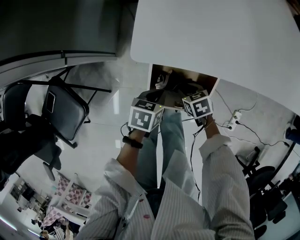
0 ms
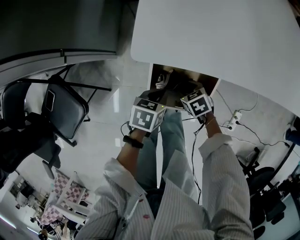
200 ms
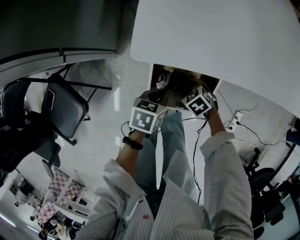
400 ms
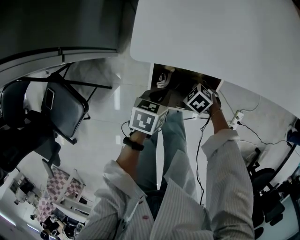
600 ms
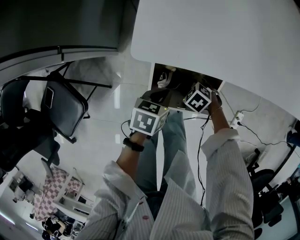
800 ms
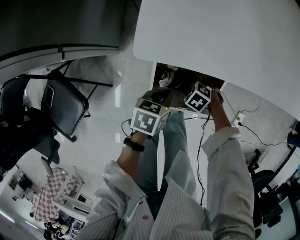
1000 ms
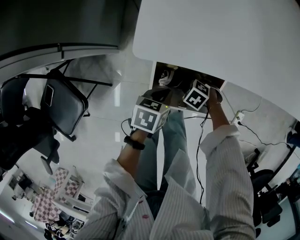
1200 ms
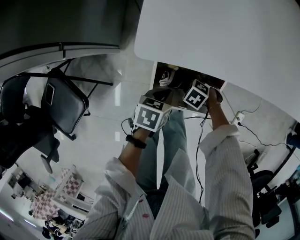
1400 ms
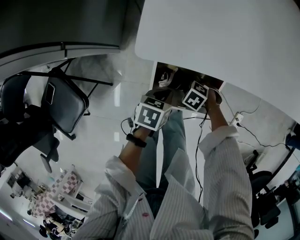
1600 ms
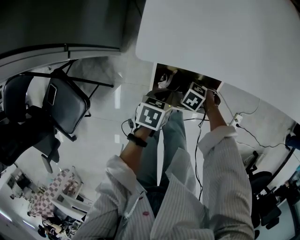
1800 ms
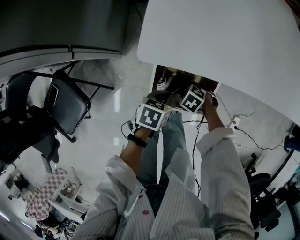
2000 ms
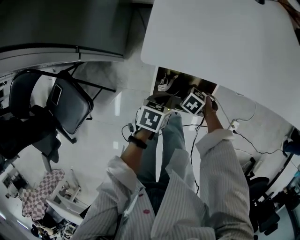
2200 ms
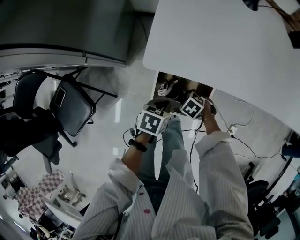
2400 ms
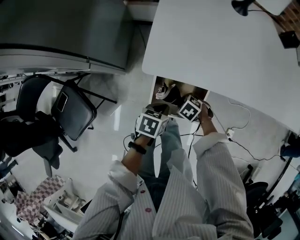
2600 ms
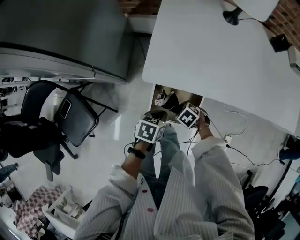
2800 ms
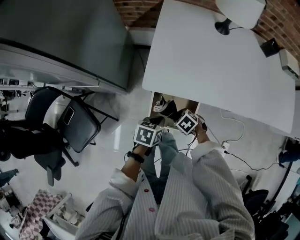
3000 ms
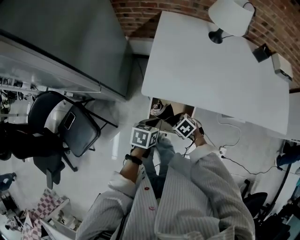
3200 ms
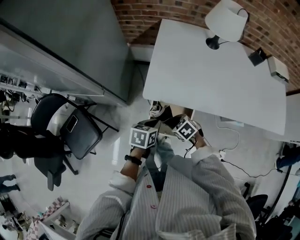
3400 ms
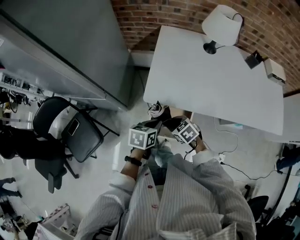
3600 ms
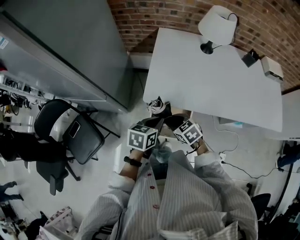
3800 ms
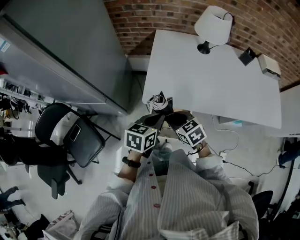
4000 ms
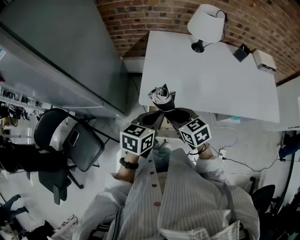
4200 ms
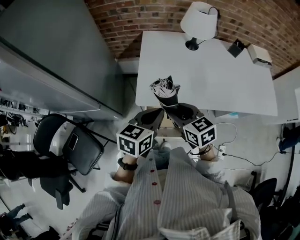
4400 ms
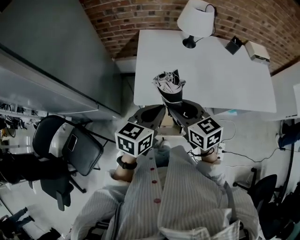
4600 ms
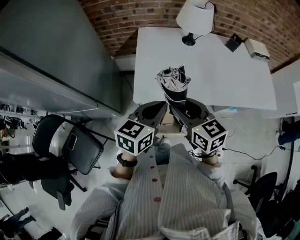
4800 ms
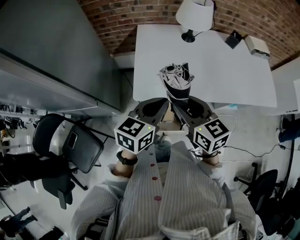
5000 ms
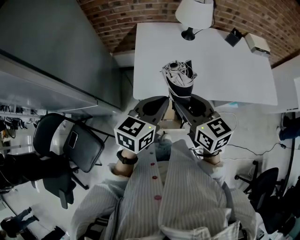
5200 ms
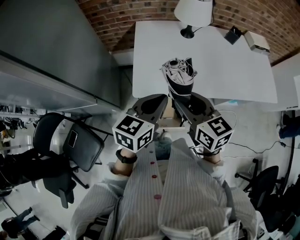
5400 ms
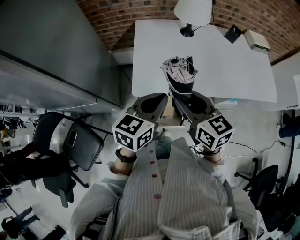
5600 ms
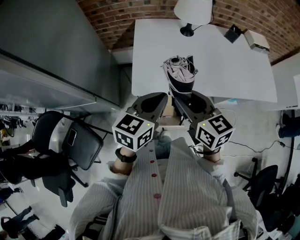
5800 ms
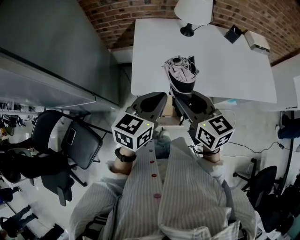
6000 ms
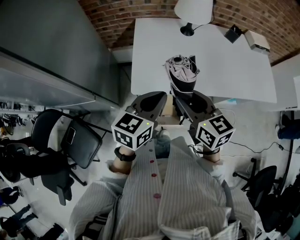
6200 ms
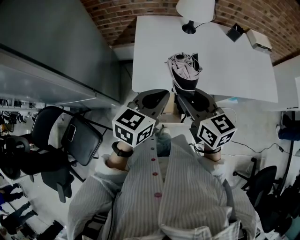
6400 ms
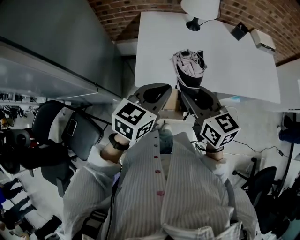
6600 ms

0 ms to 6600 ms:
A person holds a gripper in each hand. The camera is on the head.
0 ms to 1600 ms: The right gripper is displaced downward by approximately 5 cm, and rotates roughly 50 degrees.
1600 ms to 3200 ms: Both grippers travel together upward, about 20 cm. The right gripper turns by approximately 20 degrees.
3200 ms to 5000 ms: Both grippers travel together upward, roughly 30 cm. The left gripper angles its fingers upward, by approximately 30 degrees. Meanwhile the right gripper angles its fingers upward, by roughly 50 degrees.
5000 ms to 6600 ms: The grippers make only small movements.

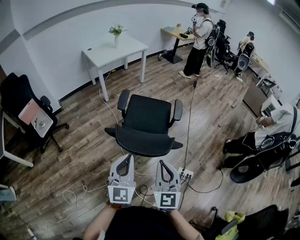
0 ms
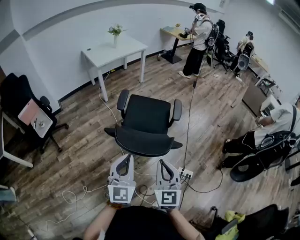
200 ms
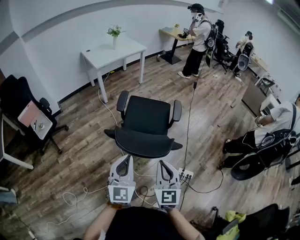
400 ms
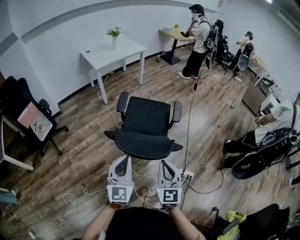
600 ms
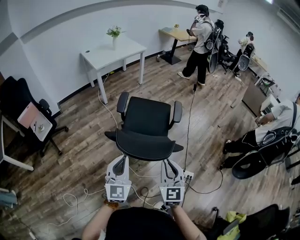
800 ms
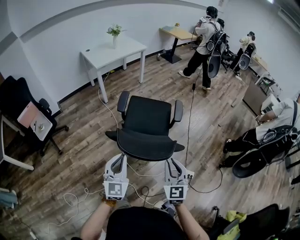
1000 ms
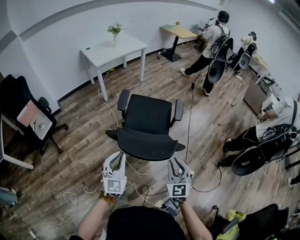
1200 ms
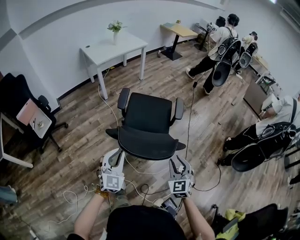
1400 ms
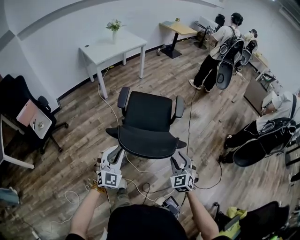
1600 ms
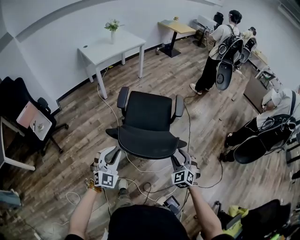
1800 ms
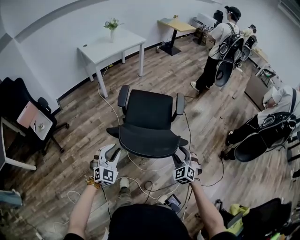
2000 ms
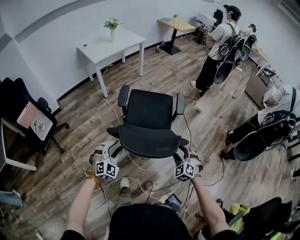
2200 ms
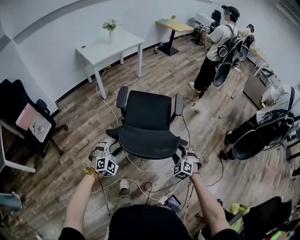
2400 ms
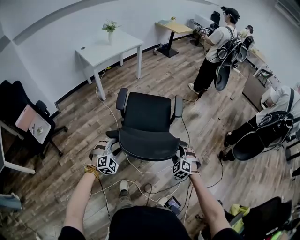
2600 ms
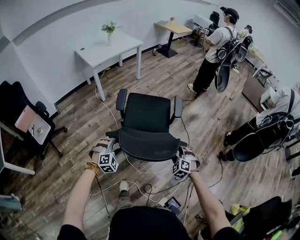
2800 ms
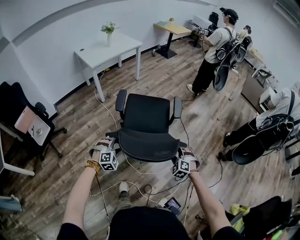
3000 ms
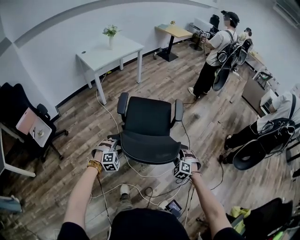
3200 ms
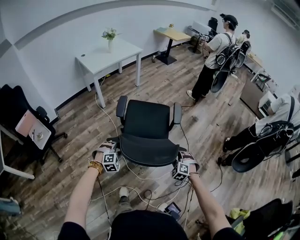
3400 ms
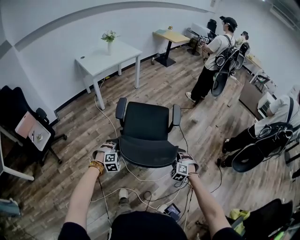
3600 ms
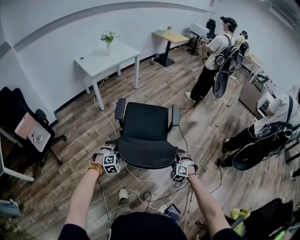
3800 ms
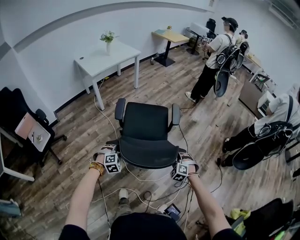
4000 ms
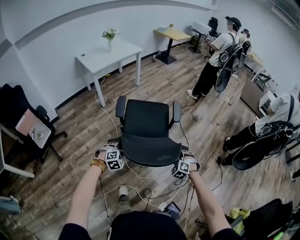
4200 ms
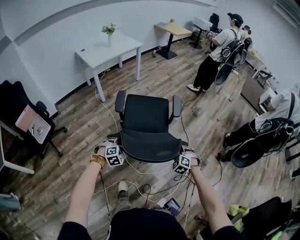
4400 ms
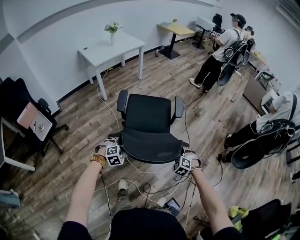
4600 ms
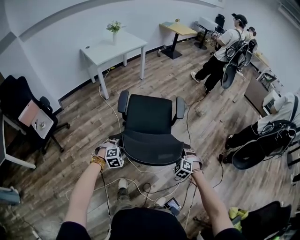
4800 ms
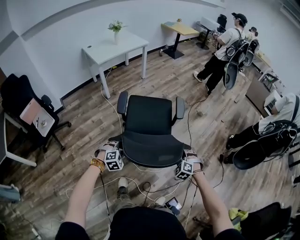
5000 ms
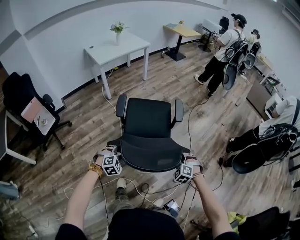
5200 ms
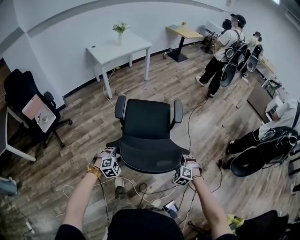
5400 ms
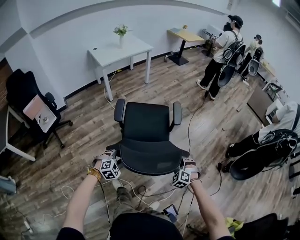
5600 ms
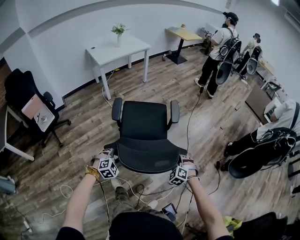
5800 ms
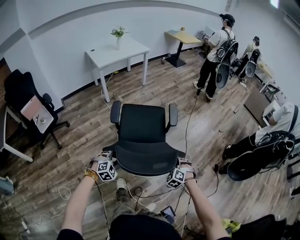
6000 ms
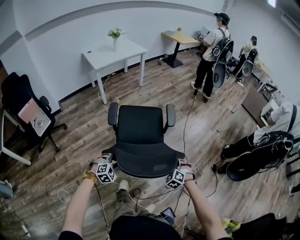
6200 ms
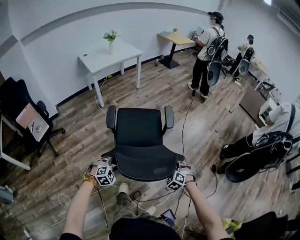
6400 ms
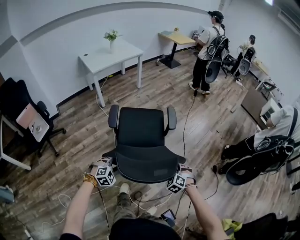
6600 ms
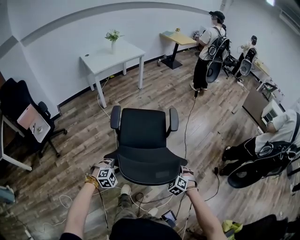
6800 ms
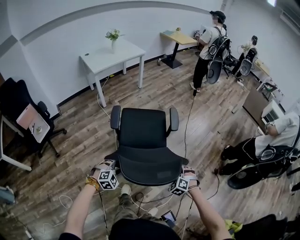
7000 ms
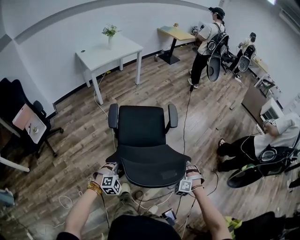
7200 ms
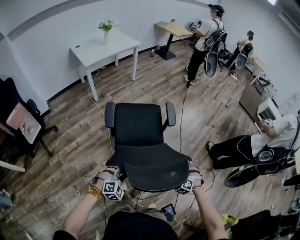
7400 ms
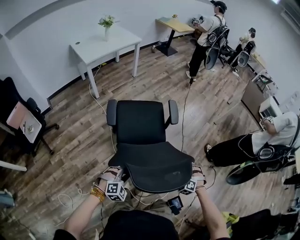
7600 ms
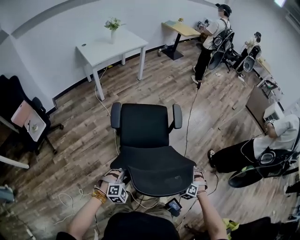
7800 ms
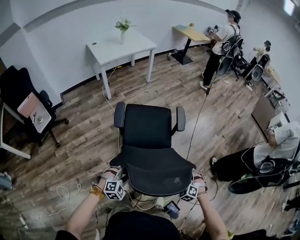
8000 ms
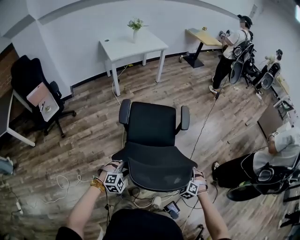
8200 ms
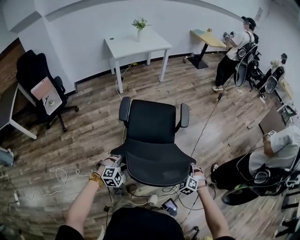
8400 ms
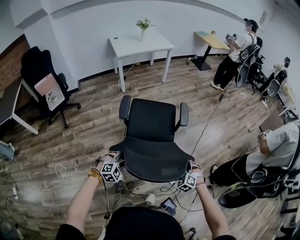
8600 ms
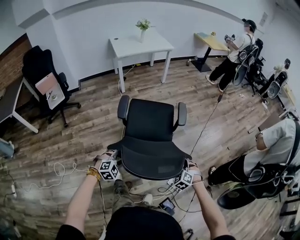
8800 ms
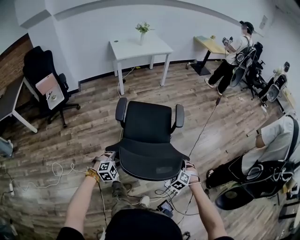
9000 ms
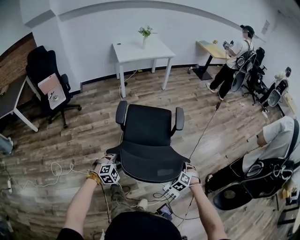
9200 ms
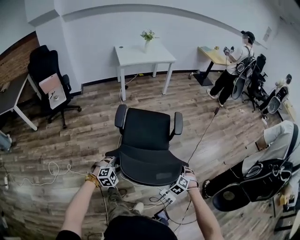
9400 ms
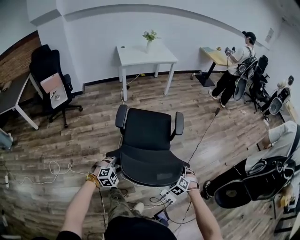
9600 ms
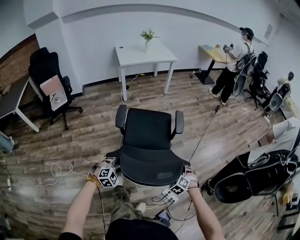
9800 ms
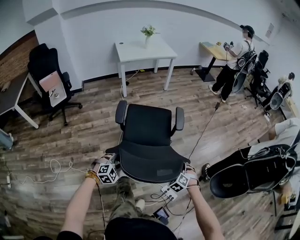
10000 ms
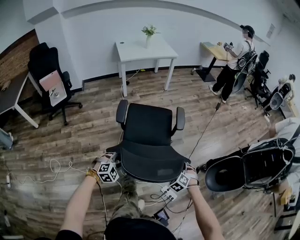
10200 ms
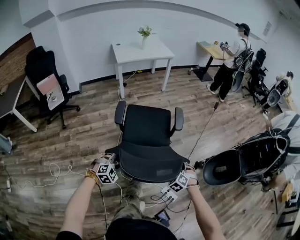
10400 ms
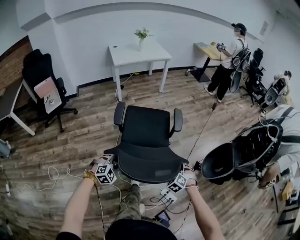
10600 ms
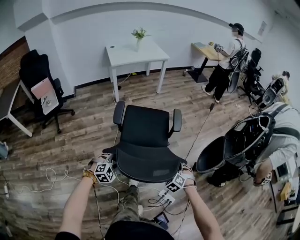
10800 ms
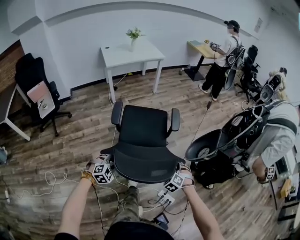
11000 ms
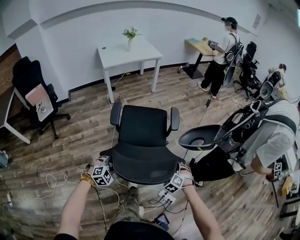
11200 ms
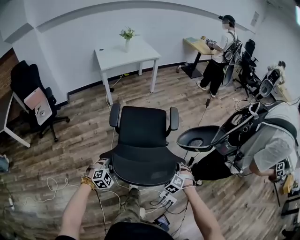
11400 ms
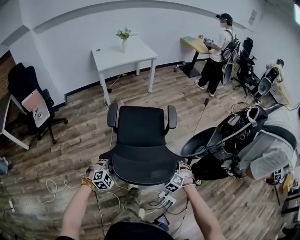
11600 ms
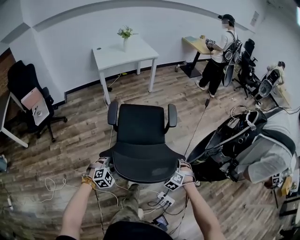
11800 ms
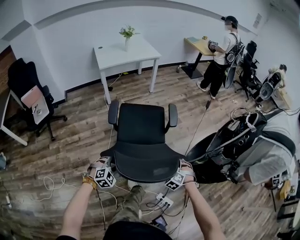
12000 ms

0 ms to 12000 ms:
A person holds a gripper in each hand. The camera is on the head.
0 ms to 1600 ms: The right gripper moves downward, to the right and forward, approximately 15 cm, swivels approximately 30 degrees, and opens; the left gripper moves downward, to the left and forward, some 15 cm, and turns by approximately 30 degrees.
1600 ms to 3000 ms: Both grippers move downward and forward, about 15 cm. The left gripper angles its fingers downward, by approximately 40 degrees, and opens up, while the right gripper changes its angle by about 30 degrees.
3000 ms to 4400 ms: The left gripper closes its fingers.
4400 ms to 6000 ms: The right gripper travels to the right by some 5 cm, while the left gripper goes roughly 10 cm backward and to the right.
6000 ms to 7600 ms: The right gripper goes approximately 5 cm forward.
7600 ms to 9000 ms: The grippers both shift to the right by roughly 10 cm. The left gripper rotates approximately 20 degrees.
9000 ms to 10400 ms: The grippers make only small movements.
10400 ms to 12000 ms: Both grippers move forward, about 15 cm.

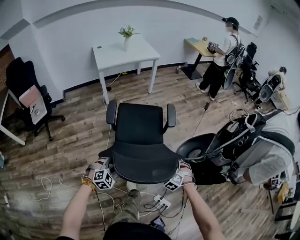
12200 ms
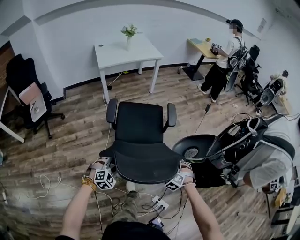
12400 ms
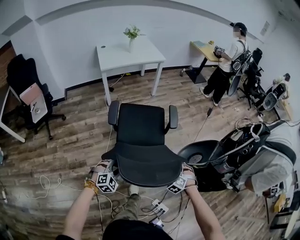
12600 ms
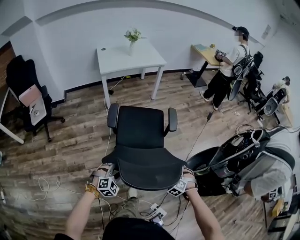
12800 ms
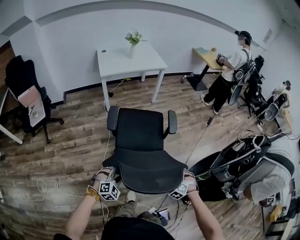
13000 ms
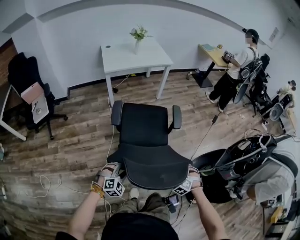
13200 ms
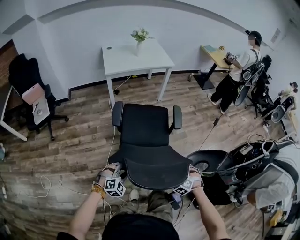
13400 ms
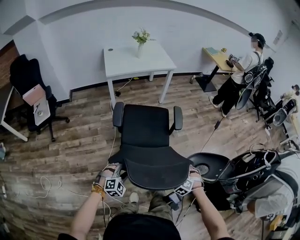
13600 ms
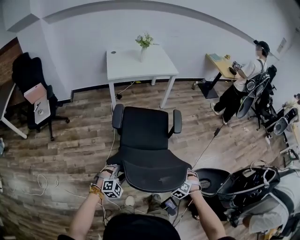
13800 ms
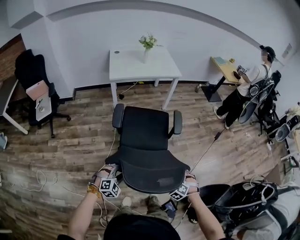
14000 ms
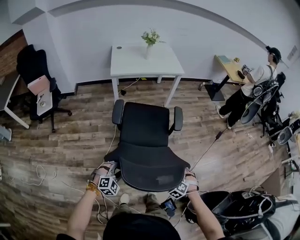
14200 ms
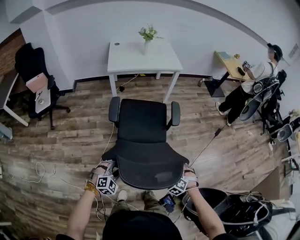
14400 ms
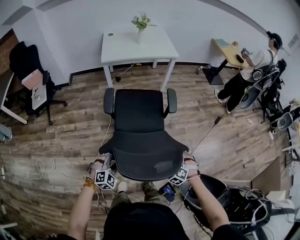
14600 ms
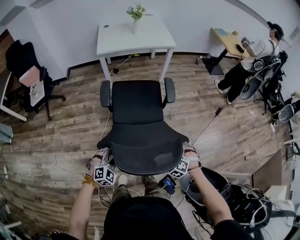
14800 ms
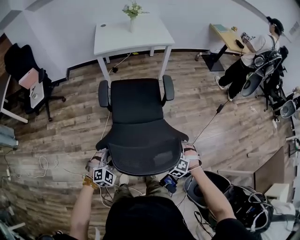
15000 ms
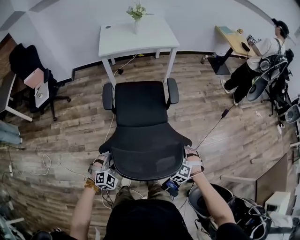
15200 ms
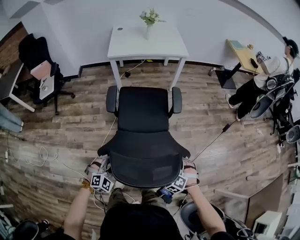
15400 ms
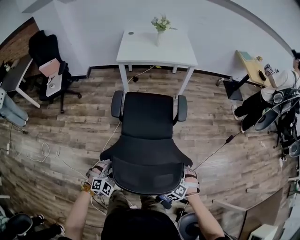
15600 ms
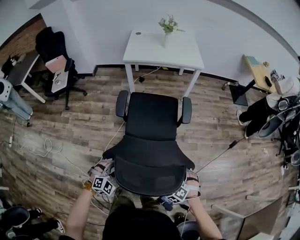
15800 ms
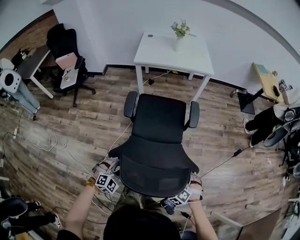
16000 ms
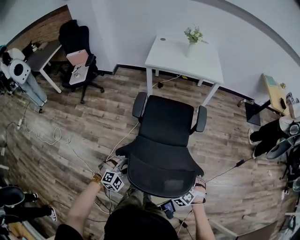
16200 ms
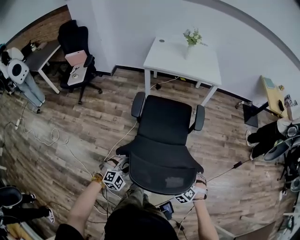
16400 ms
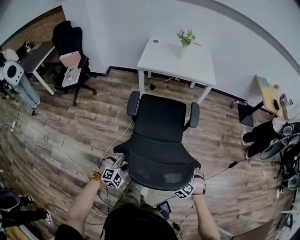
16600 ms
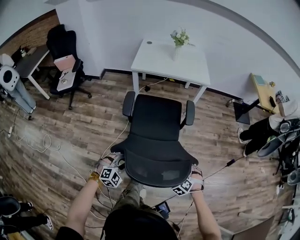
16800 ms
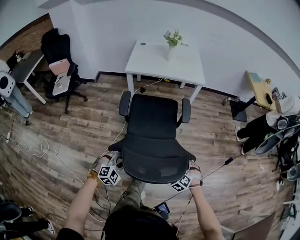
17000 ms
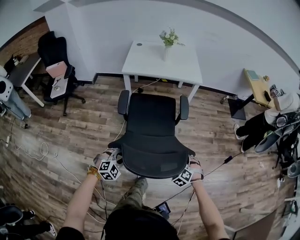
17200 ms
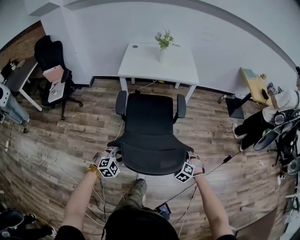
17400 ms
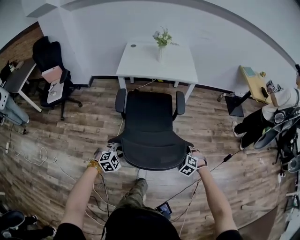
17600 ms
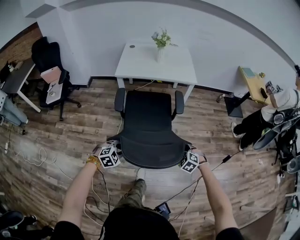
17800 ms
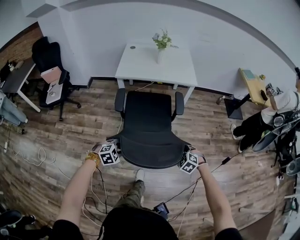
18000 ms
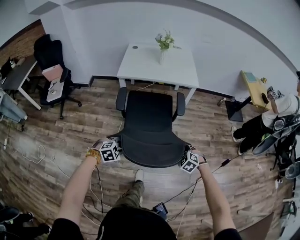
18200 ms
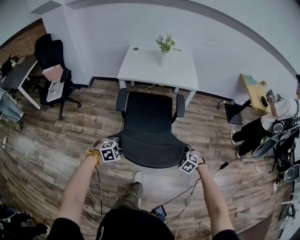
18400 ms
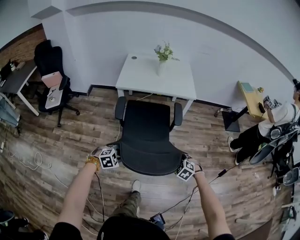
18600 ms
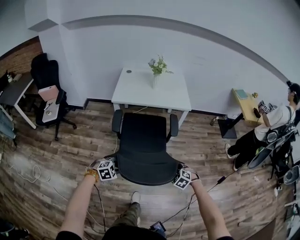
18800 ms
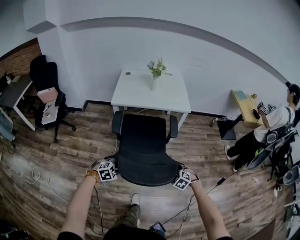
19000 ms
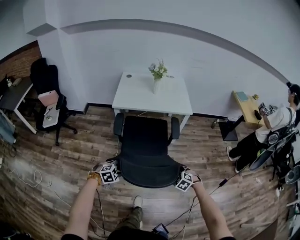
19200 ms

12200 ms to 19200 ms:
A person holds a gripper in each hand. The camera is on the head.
12200 ms to 13600 ms: The grippers both shift forward by about 20 cm.
13600 ms to 15000 ms: The right gripper shifts about 10 cm forward. The left gripper goes approximately 10 cm to the right and forward.
15000 ms to 16400 ms: The two grippers go some 10 cm forward.
16400 ms to 17800 ms: Both grippers travel together forward, about 20 cm. The right gripper turns by roughly 20 degrees.
17800 ms to 19200 ms: The grippers both shift forward by some 5 cm.
